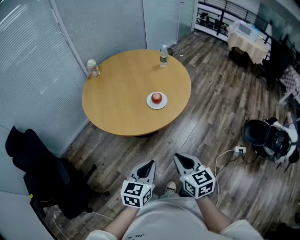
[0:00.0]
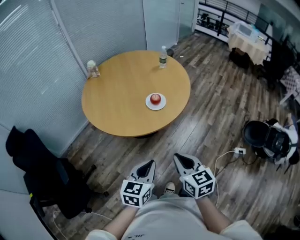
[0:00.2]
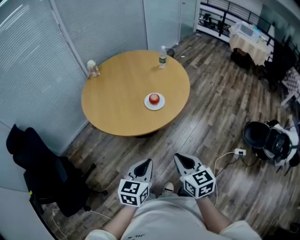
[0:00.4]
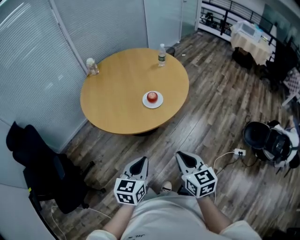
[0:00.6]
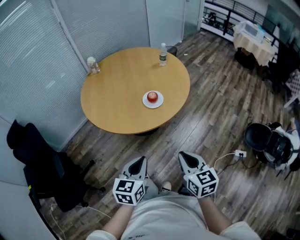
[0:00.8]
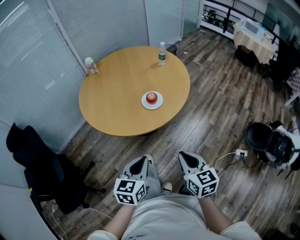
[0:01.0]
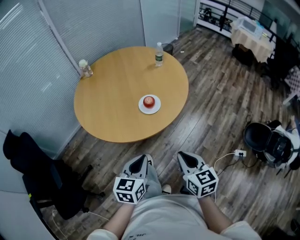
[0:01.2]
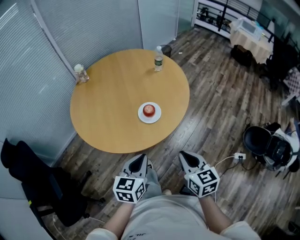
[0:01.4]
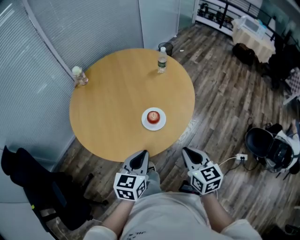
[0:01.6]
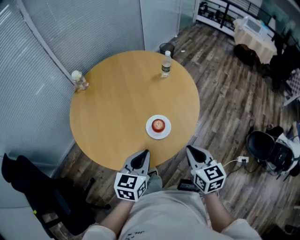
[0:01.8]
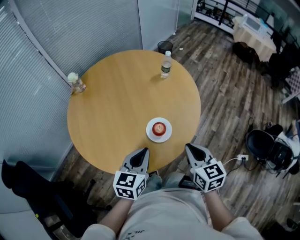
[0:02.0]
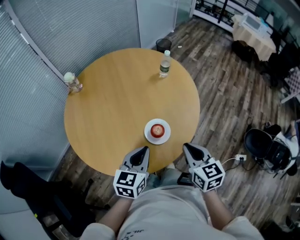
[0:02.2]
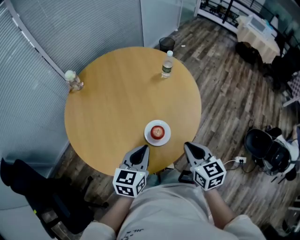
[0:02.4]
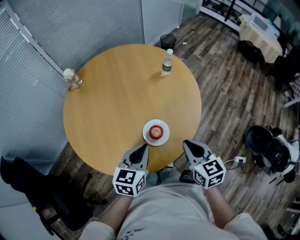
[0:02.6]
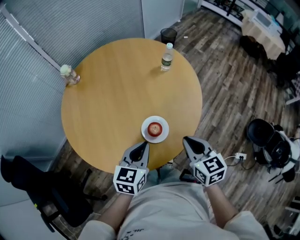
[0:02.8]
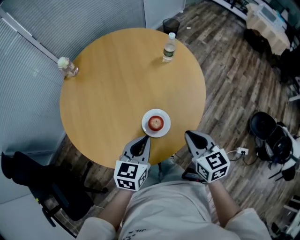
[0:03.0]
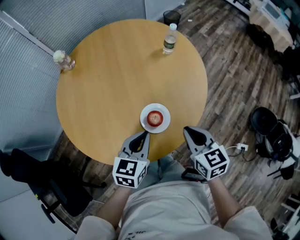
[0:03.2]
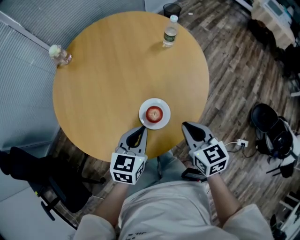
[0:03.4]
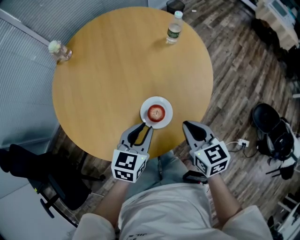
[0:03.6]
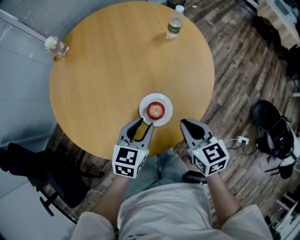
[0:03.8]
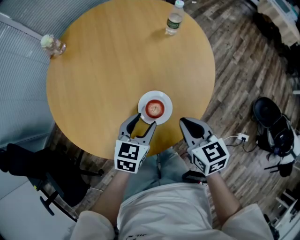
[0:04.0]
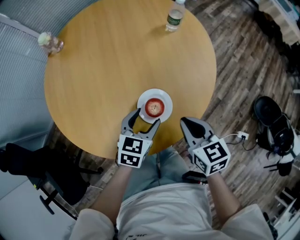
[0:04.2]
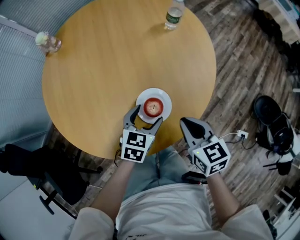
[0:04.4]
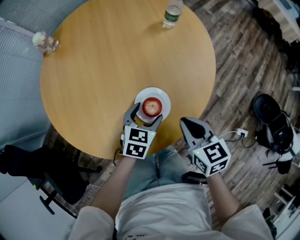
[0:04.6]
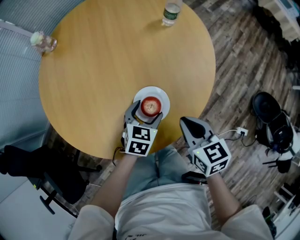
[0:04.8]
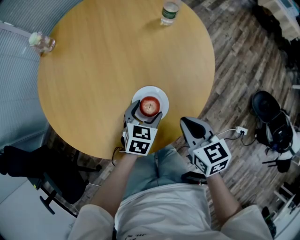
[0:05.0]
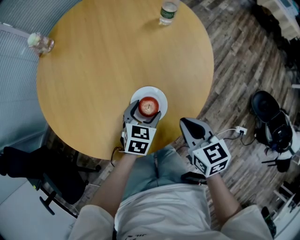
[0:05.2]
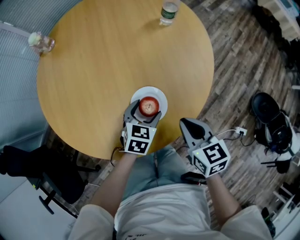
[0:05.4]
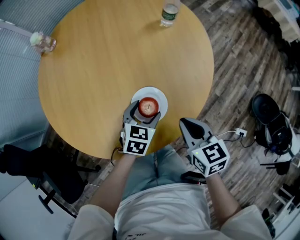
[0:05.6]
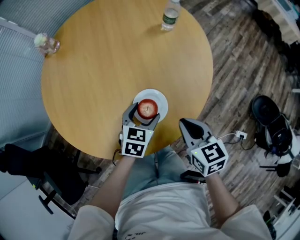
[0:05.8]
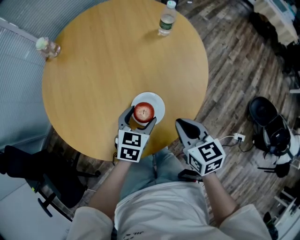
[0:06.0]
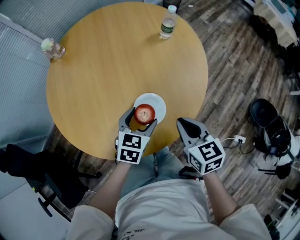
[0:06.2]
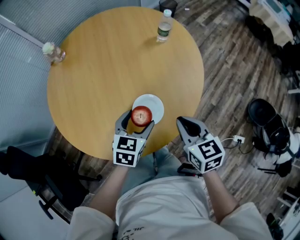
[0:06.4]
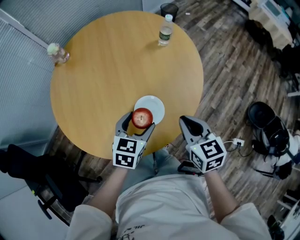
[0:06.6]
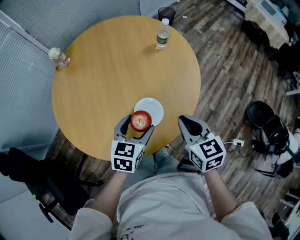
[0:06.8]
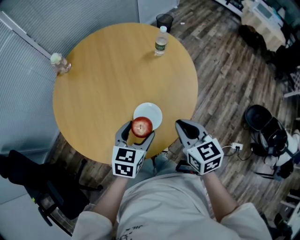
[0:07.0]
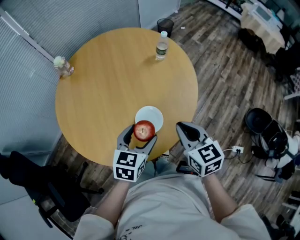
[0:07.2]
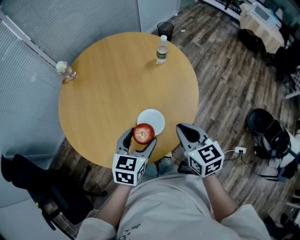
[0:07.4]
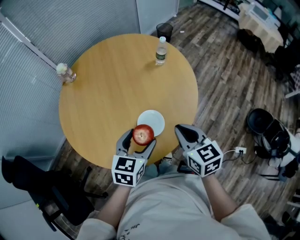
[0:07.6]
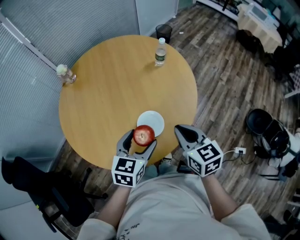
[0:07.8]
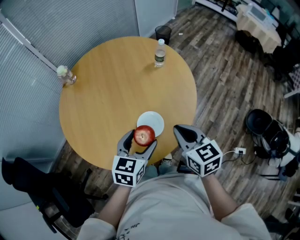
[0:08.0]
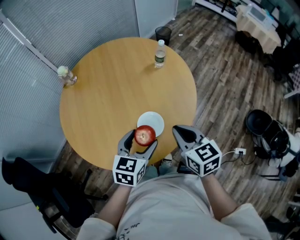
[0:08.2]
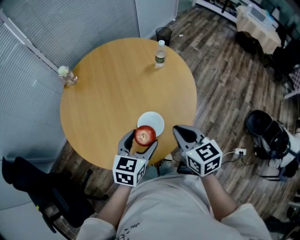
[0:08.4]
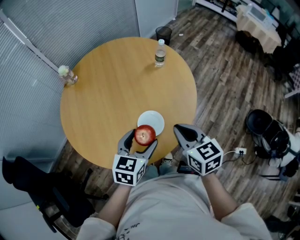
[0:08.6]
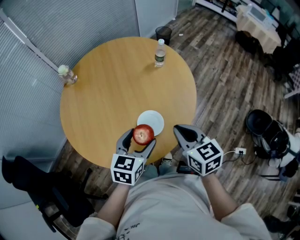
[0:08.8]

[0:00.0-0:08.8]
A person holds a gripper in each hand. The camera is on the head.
0.0 to 1.4 s: The left gripper goes some 15 cm forward, while the right gripper goes some 15 cm forward and to the right.
1.4 to 3.0 s: The grippers both shift forward by some 25 cm.
3.0 to 4.4 s: The right gripper is displaced downward by about 10 cm; the left gripper moves downward, approximately 15 cm, and opens.
4.4 to 5.8 s: The grippers stay close to where they were, moving slightly.
5.8 to 7.4 s: Both grippers travel together upward, some 15 cm.
7.4 to 8.8 s: The grippers make only small movements.

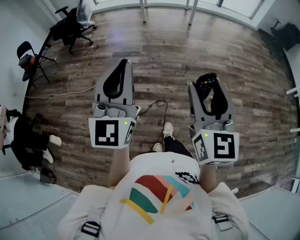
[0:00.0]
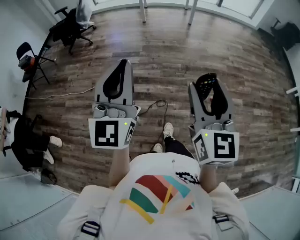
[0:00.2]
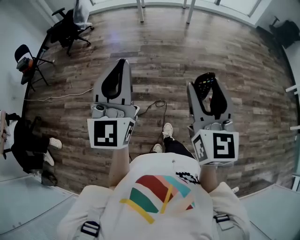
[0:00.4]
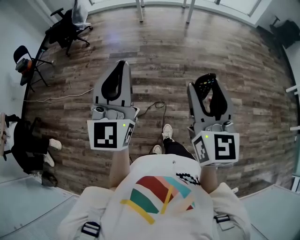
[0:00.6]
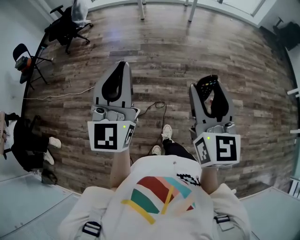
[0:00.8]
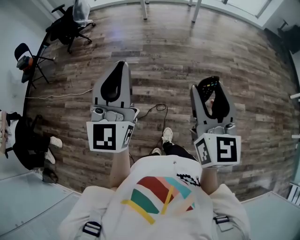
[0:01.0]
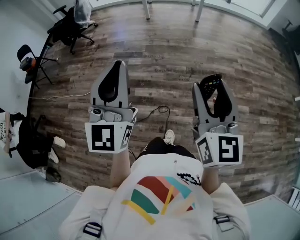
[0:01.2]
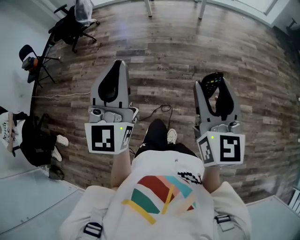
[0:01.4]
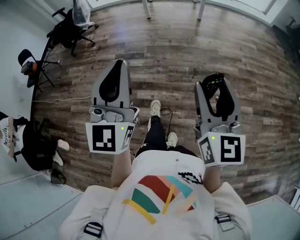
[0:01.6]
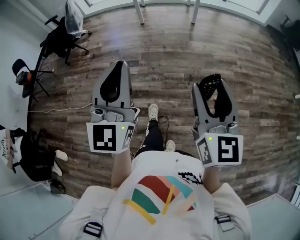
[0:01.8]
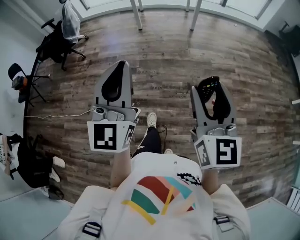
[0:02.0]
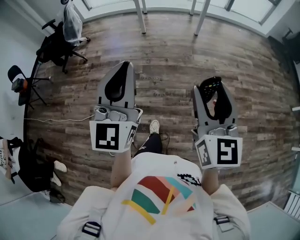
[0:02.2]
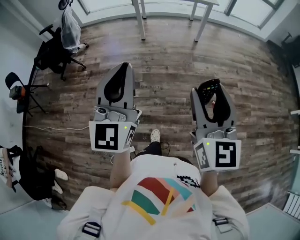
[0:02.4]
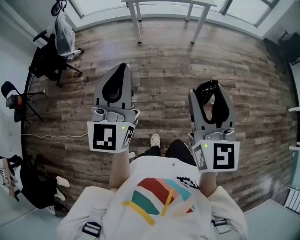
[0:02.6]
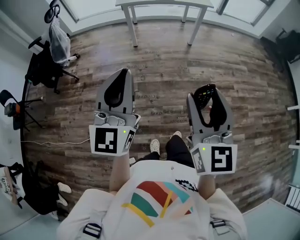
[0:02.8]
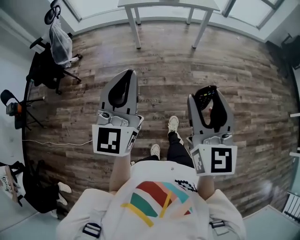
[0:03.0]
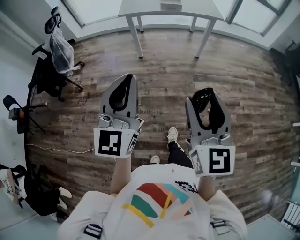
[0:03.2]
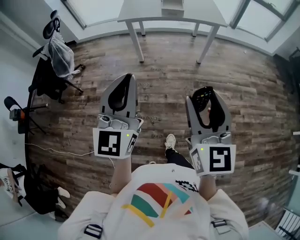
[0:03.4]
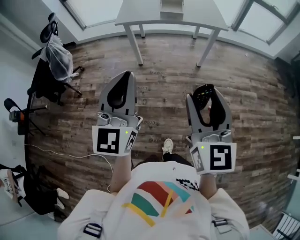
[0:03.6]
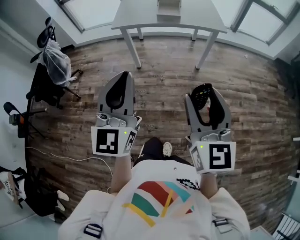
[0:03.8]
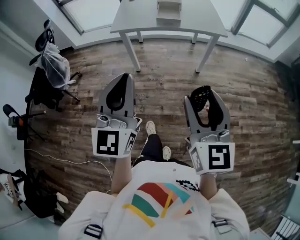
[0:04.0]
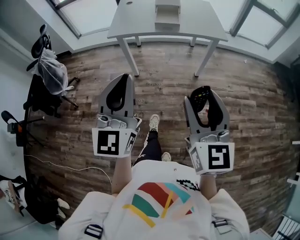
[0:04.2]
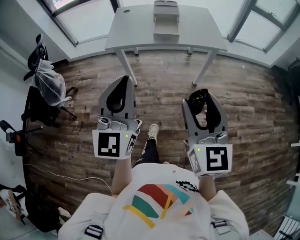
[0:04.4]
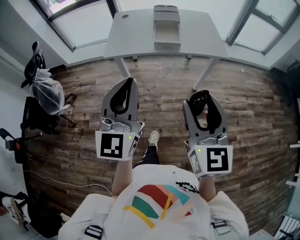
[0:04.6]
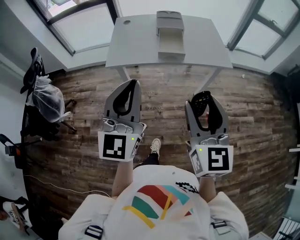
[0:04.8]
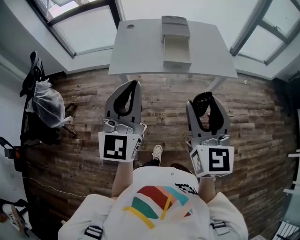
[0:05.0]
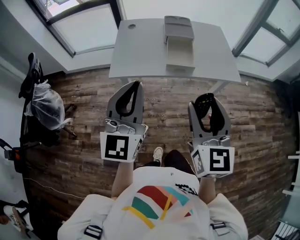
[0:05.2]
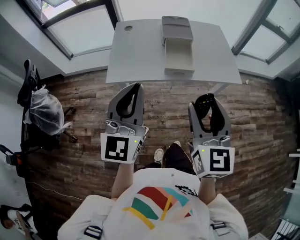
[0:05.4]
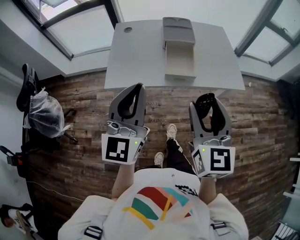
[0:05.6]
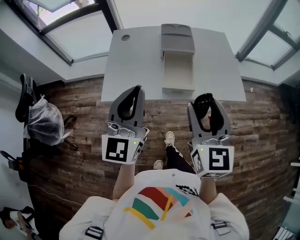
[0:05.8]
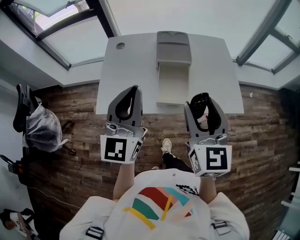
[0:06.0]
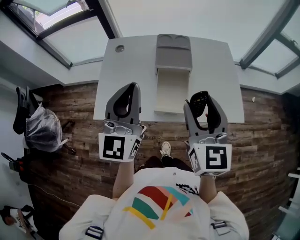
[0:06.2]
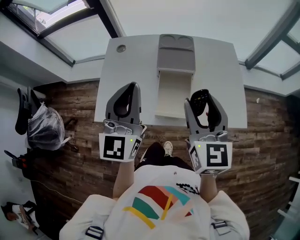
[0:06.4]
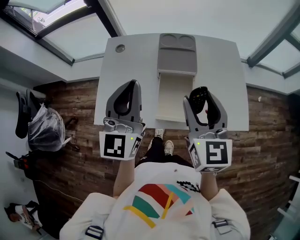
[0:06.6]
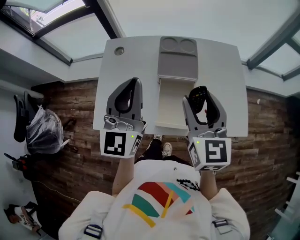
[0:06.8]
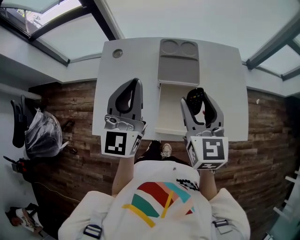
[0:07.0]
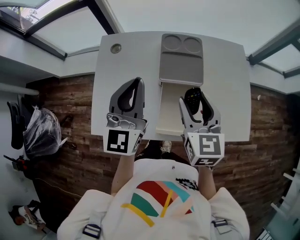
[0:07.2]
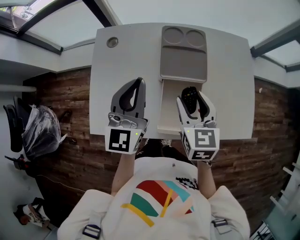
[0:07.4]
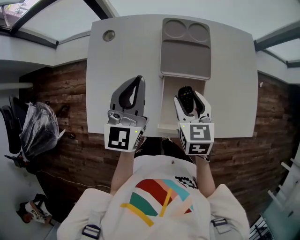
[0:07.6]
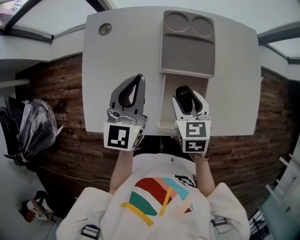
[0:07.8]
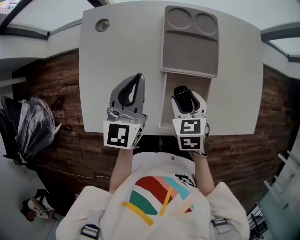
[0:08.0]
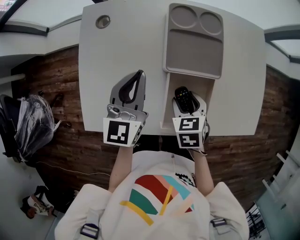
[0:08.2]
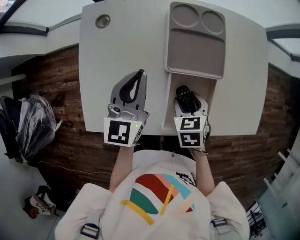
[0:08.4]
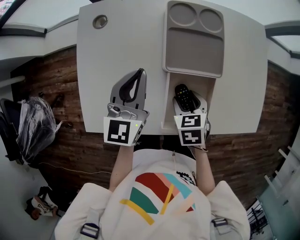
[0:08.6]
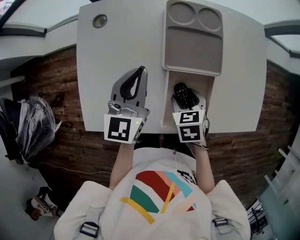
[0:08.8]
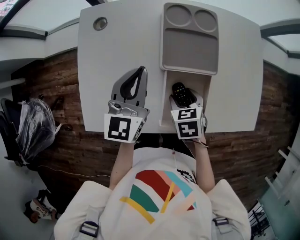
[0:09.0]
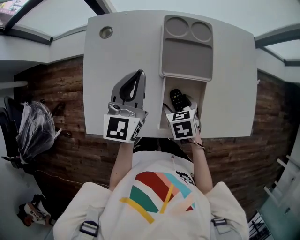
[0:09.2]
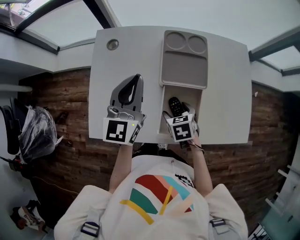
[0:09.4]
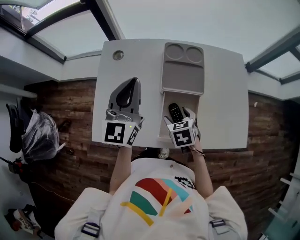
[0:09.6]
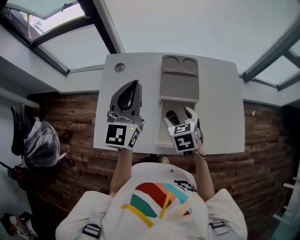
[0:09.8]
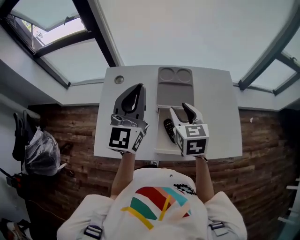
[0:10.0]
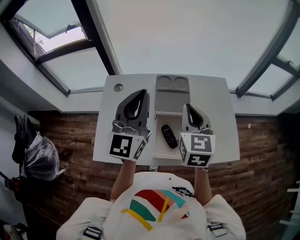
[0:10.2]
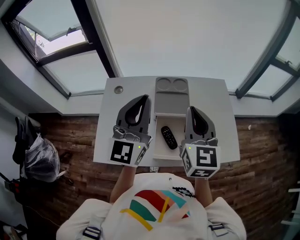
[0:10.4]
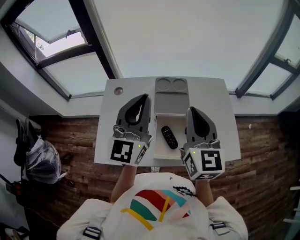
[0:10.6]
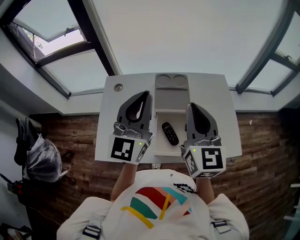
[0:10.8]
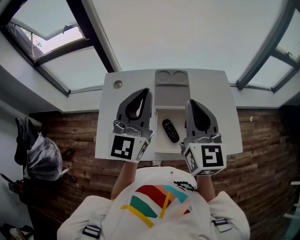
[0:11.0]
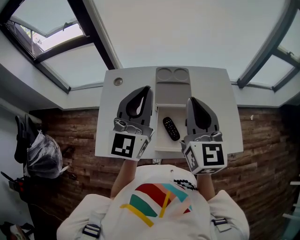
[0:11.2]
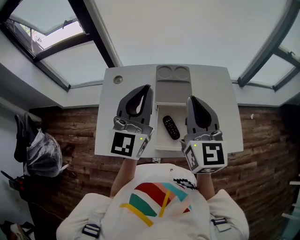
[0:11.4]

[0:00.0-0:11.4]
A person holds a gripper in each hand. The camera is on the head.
0.0 to 1.4 s: Both grippers travel together forward, about 15 cm.
1.4 to 2.8 s: Both grippers are carried forward, roughly 40 cm.
2.8 to 4.2 s: Both grippers move forward, about 40 cm.
4.2 to 5.6 s: Both grippers travel together forward, approximately 40 cm.
5.6 to 7.2 s: The two grippers go about 35 cm forward.
7.2 to 8.6 s: Both grippers move downward, roughly 20 cm. The right gripper points its fingers approximately 40 degrees further downward.
8.6 to 10.0 s: The two grippers go about 20 cm upward. The right gripper tilts its fingers about 30 degrees upward, while the left gripper swivels approximately 30 degrees.
10.0 to 11.4 s: The right gripper moves upward, about 15 cm, rotates approximately 30 degrees, and closes. Meanwhile the left gripper moves about 5 cm.

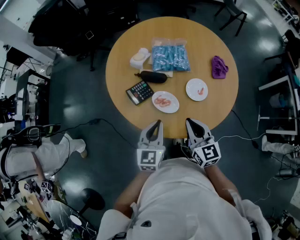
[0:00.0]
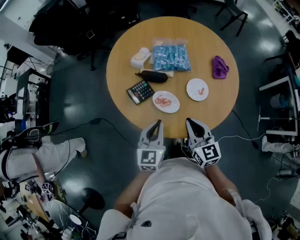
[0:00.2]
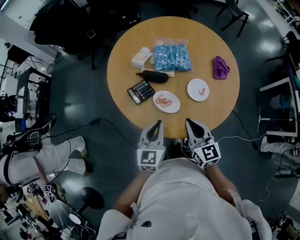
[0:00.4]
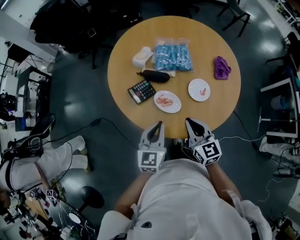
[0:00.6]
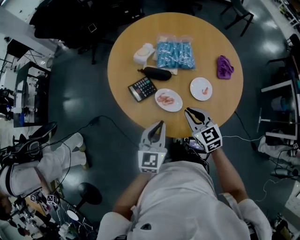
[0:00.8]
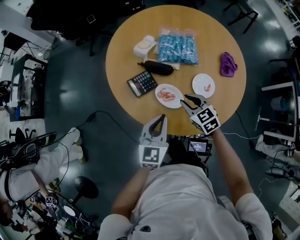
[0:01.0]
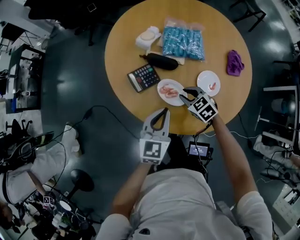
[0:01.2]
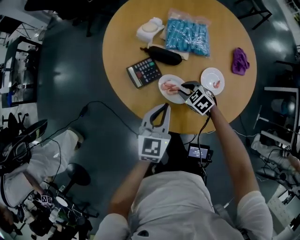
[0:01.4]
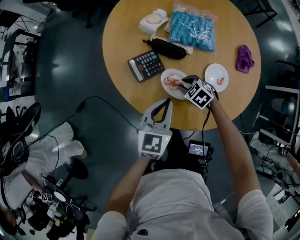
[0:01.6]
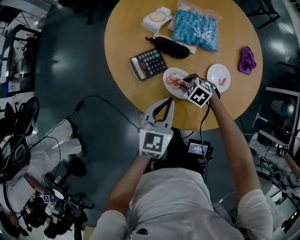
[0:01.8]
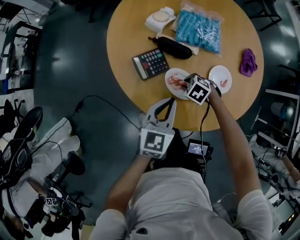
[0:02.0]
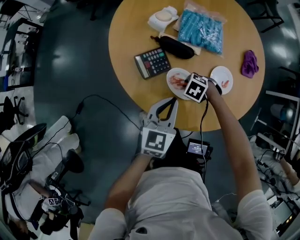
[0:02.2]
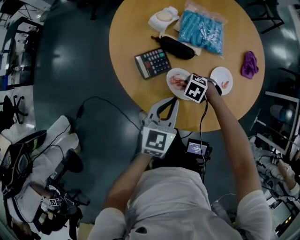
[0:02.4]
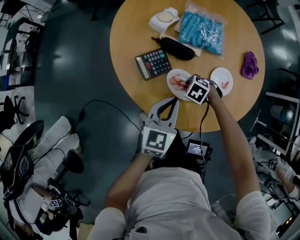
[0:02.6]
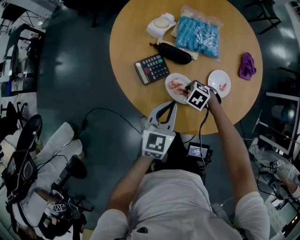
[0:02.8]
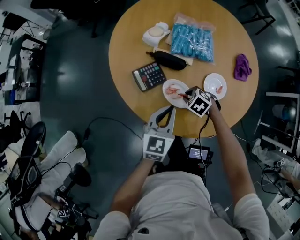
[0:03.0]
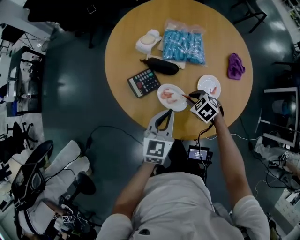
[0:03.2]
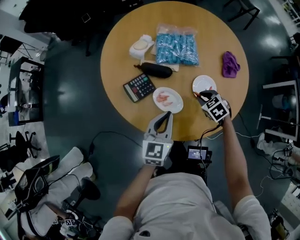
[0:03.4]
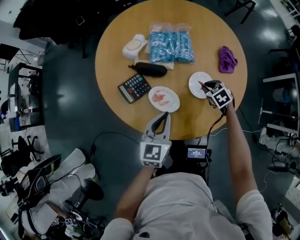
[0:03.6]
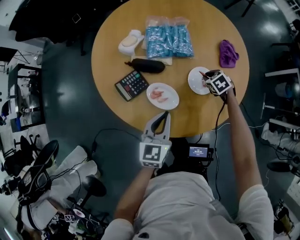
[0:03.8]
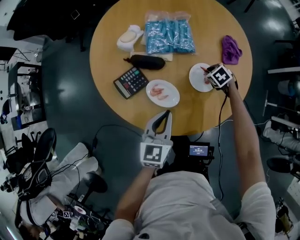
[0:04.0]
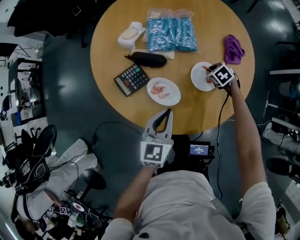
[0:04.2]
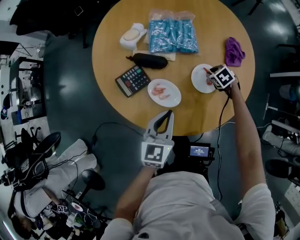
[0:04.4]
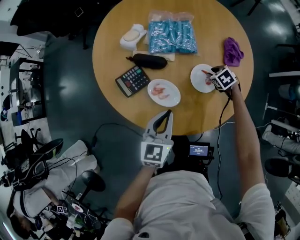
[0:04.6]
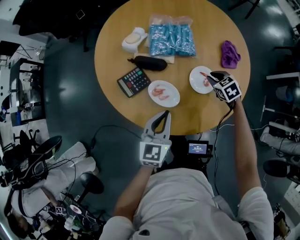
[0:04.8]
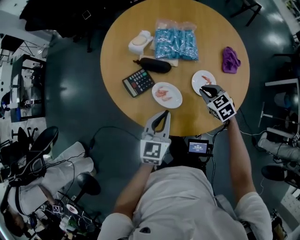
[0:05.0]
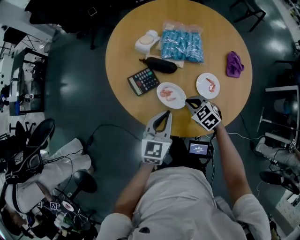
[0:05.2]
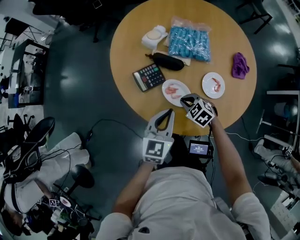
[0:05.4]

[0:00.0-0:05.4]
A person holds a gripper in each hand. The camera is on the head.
0.0 to 1.4 s: The left gripper moves downward and forward, some 10 cm, while the right gripper heads downward and forward, covering some 30 cm, tips its fingers downward by approximately 40 degrees, and opens its fingers.
1.4 to 2.8 s: The right gripper rotates approximately 20 degrees.
2.8 to 4.0 s: The left gripper moves approximately 5 cm. The right gripper travels upward and back again, about 10 cm each way, and swivels some 30 degrees.
4.0 to 5.4 s: The left gripper moves approximately 5 cm. Meanwhile the right gripper ends up some 25 cm from where it was, and turns by approximately 30 degrees.
